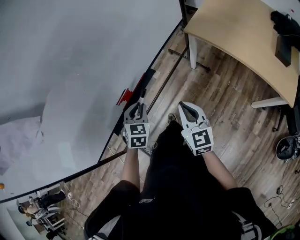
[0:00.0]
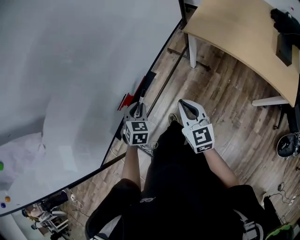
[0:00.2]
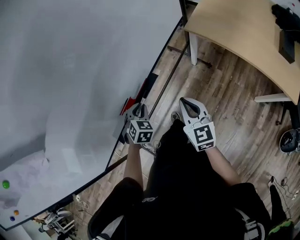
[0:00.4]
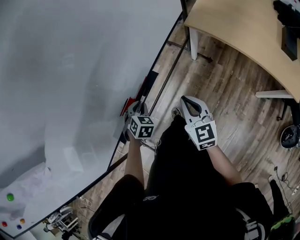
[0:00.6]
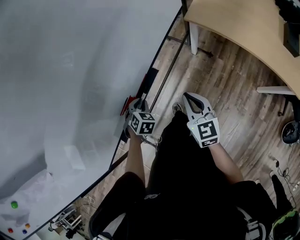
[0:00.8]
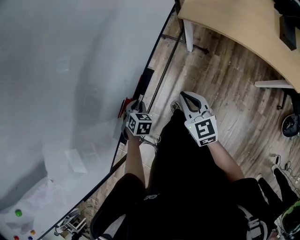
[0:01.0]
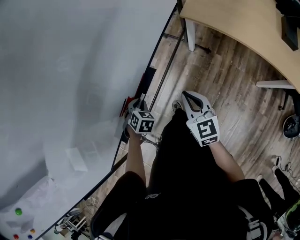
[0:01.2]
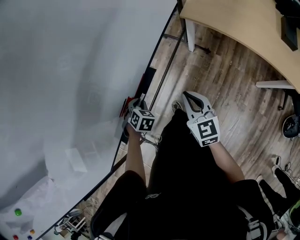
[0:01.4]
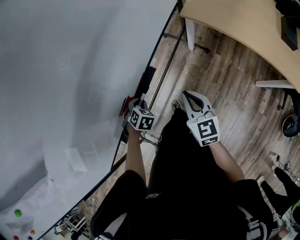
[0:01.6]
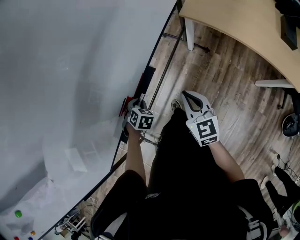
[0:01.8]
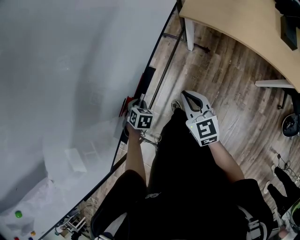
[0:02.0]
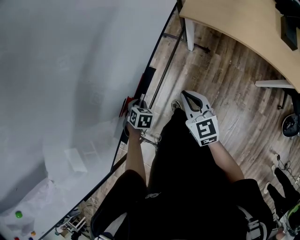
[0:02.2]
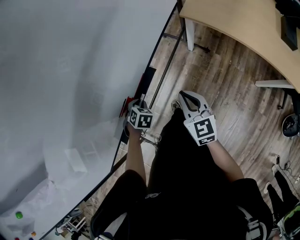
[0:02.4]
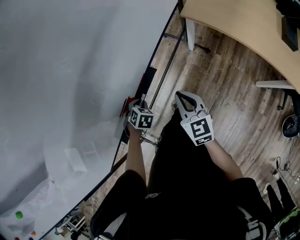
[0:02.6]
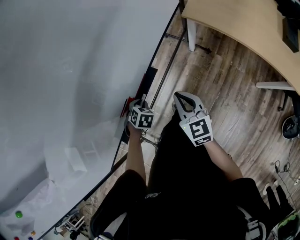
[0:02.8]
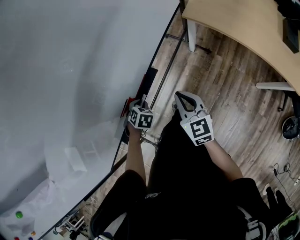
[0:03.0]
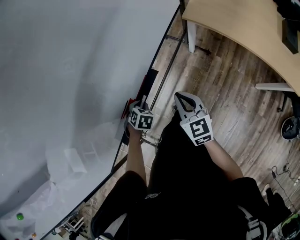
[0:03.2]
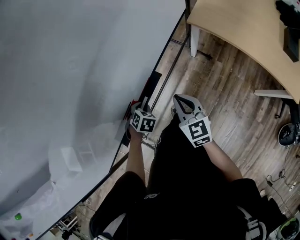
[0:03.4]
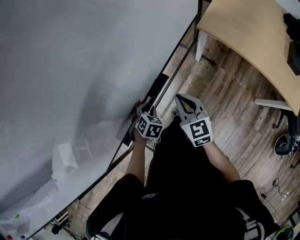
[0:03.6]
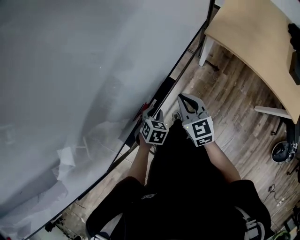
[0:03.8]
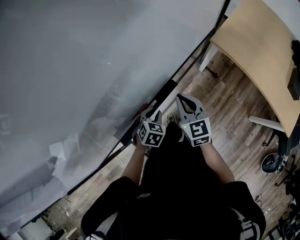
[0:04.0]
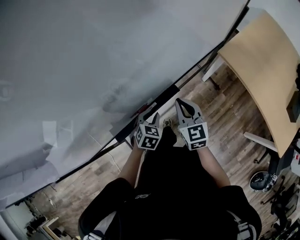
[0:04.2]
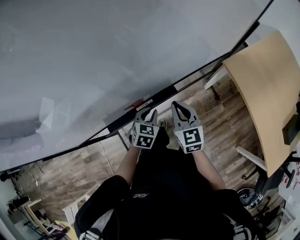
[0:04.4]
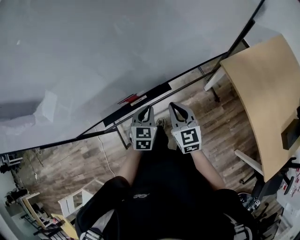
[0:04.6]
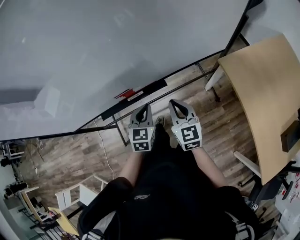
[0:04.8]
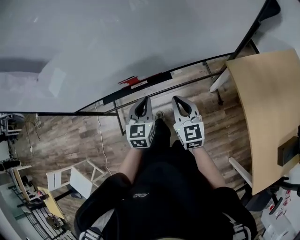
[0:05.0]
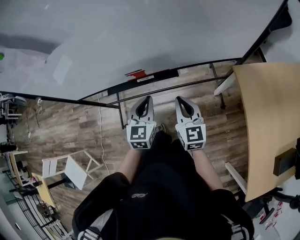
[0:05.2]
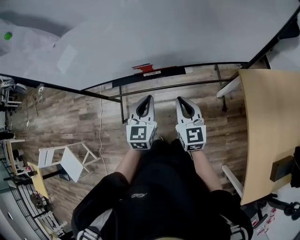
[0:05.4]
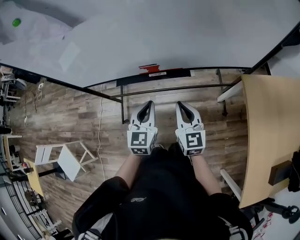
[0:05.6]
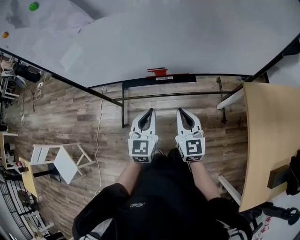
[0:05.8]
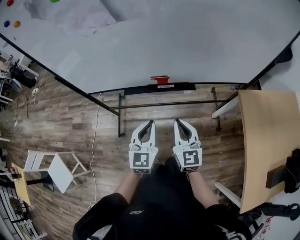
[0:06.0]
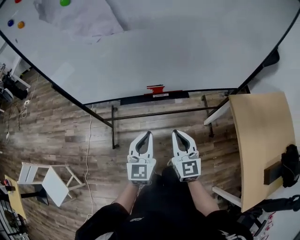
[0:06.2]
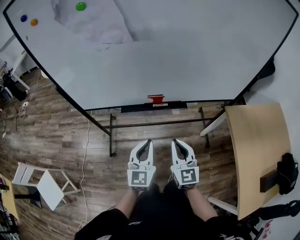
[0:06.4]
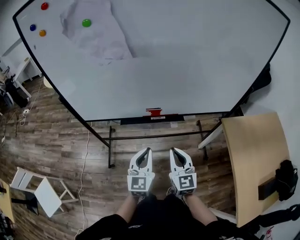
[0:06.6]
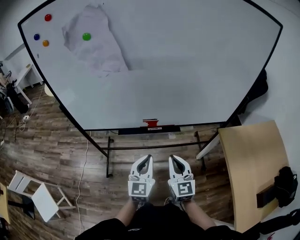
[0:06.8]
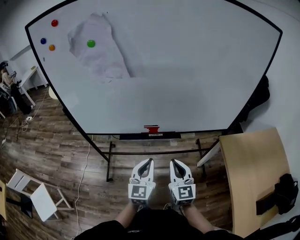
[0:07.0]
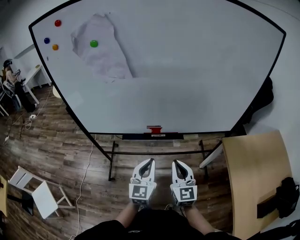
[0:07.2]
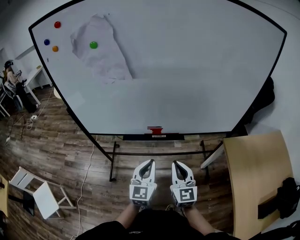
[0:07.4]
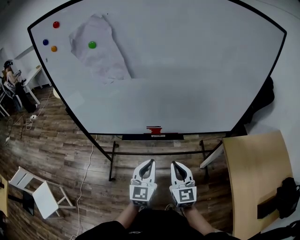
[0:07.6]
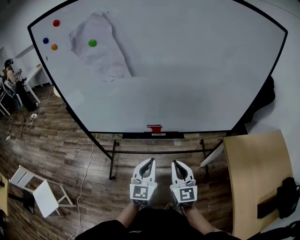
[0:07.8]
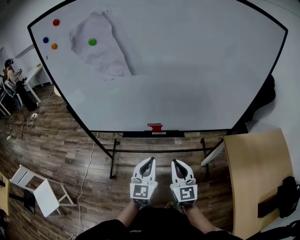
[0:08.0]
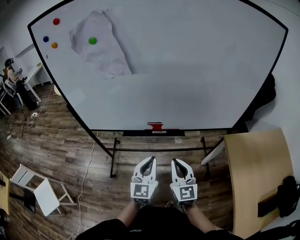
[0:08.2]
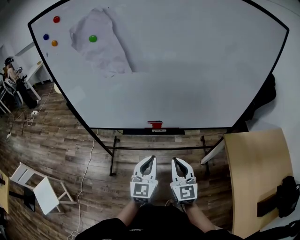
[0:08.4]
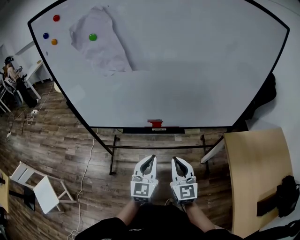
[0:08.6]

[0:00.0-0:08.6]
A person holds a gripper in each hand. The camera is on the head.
0:00.0 to 0:01.4: The right gripper goes roughly 10 cm forward and downward. Meanwhile the left gripper shifts approximately 15 cm downward and forward, and turns by about 30 degrees.
0:01.4 to 0:02.8: The grippers stay close to where they were, moving slightly.
0:02.8 to 0:04.4: The left gripper heads upward, covering roughly 10 cm, and turns by about 40 degrees. The right gripper is displaced forward and to the left by about 10 cm, and turns by approximately 20 degrees.
0:04.4 to 0:05.8: The left gripper shifts by some 25 cm, and angles its fingers upward, by some 30 degrees; the right gripper shifts by some 15 cm, and turns by some 20 degrees.
0:05.8 to 0:07.2: Both grippers move upward and backward, about 10 cm.
0:07.2 to 0:08.6: The grippers move only a little.

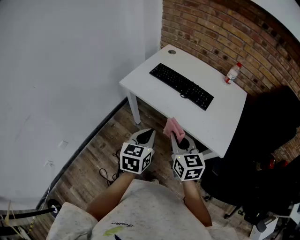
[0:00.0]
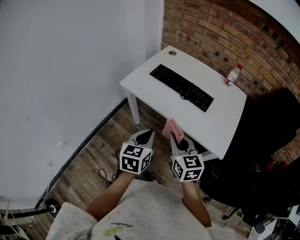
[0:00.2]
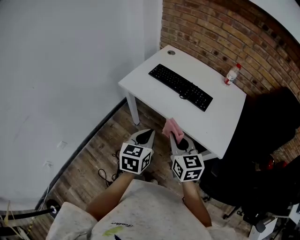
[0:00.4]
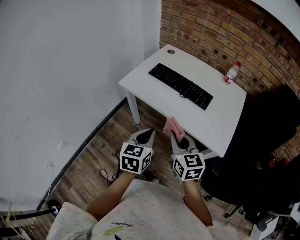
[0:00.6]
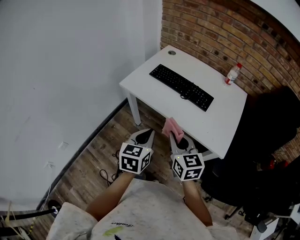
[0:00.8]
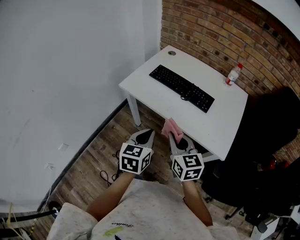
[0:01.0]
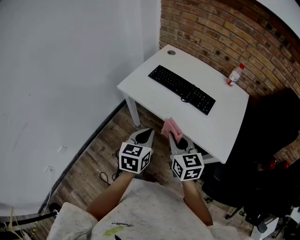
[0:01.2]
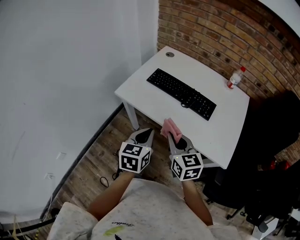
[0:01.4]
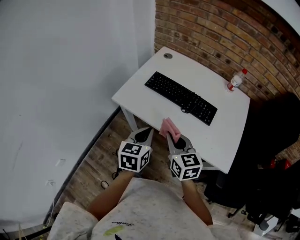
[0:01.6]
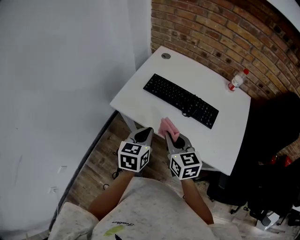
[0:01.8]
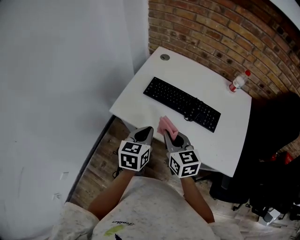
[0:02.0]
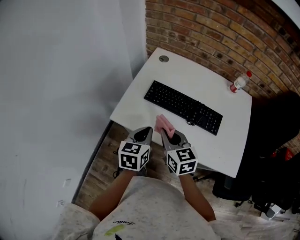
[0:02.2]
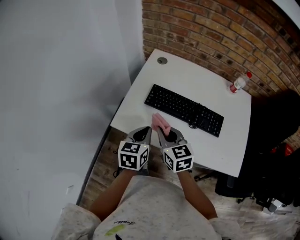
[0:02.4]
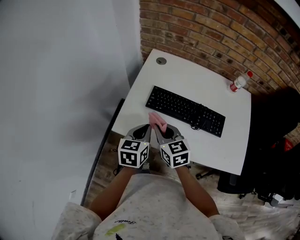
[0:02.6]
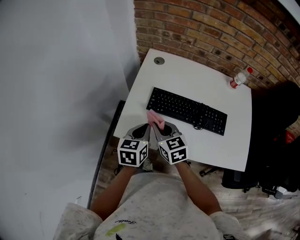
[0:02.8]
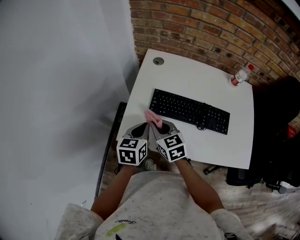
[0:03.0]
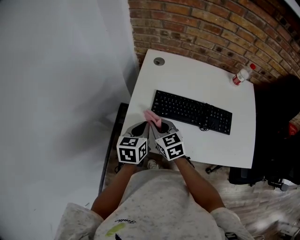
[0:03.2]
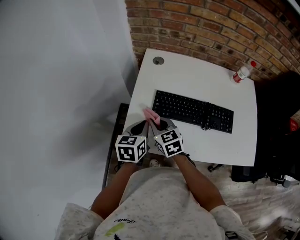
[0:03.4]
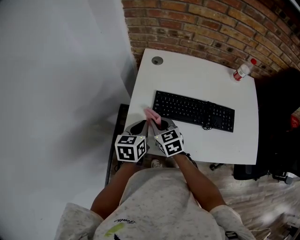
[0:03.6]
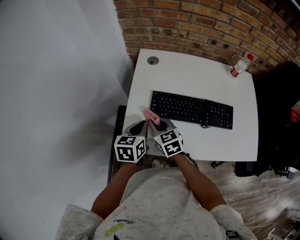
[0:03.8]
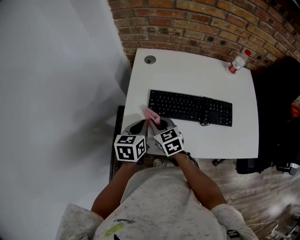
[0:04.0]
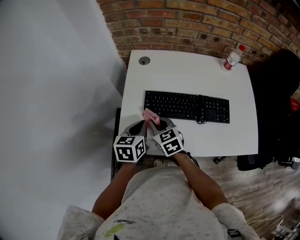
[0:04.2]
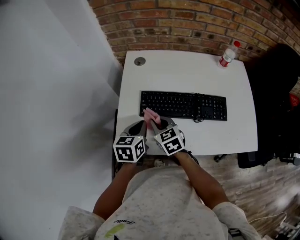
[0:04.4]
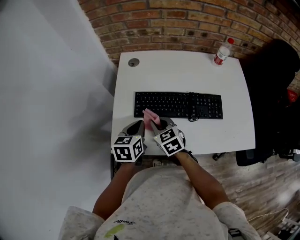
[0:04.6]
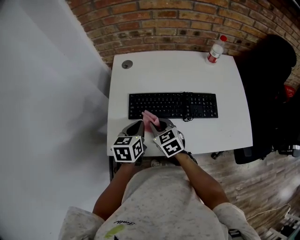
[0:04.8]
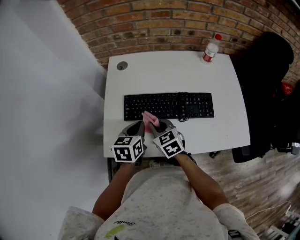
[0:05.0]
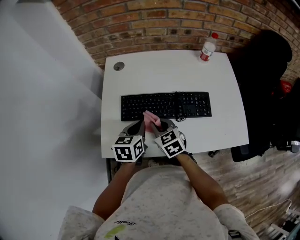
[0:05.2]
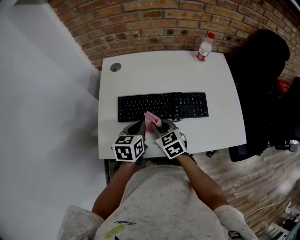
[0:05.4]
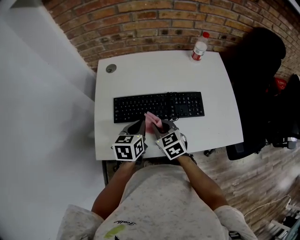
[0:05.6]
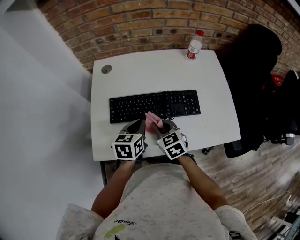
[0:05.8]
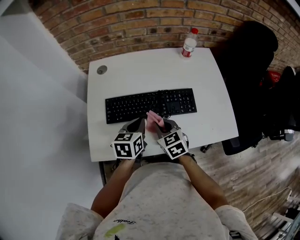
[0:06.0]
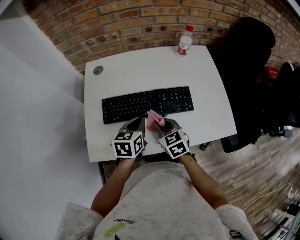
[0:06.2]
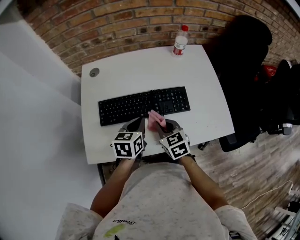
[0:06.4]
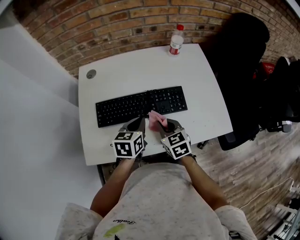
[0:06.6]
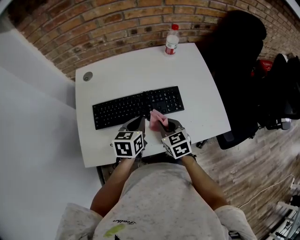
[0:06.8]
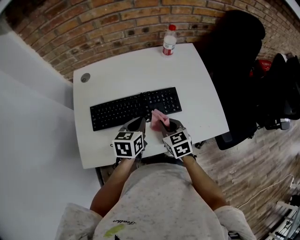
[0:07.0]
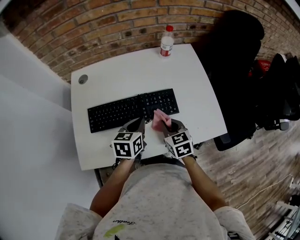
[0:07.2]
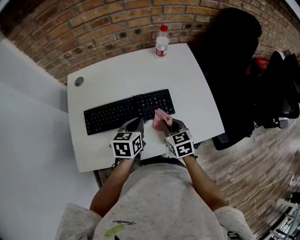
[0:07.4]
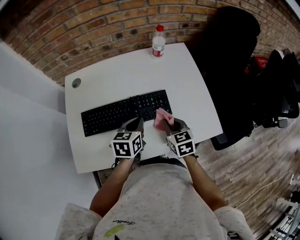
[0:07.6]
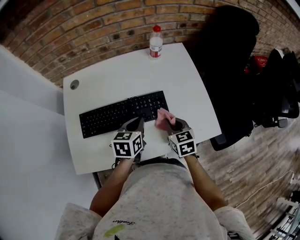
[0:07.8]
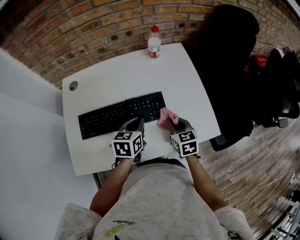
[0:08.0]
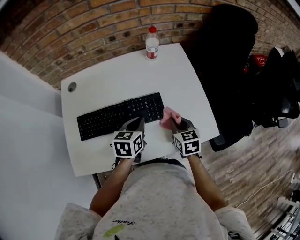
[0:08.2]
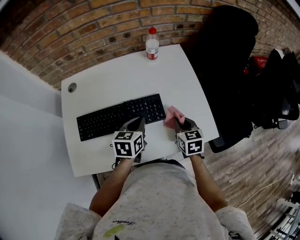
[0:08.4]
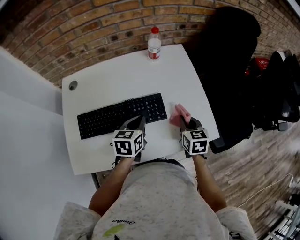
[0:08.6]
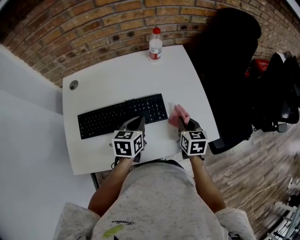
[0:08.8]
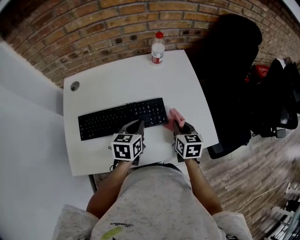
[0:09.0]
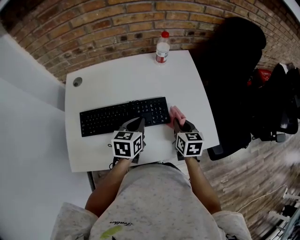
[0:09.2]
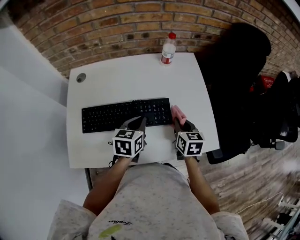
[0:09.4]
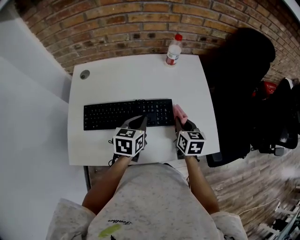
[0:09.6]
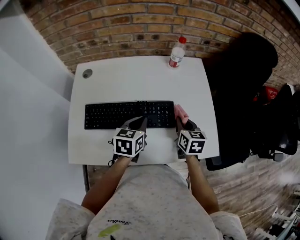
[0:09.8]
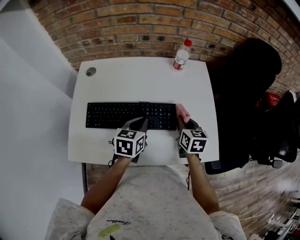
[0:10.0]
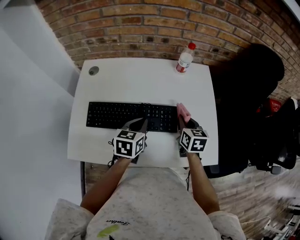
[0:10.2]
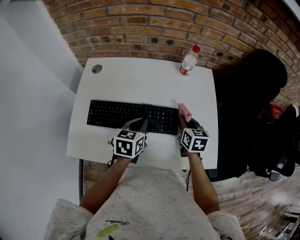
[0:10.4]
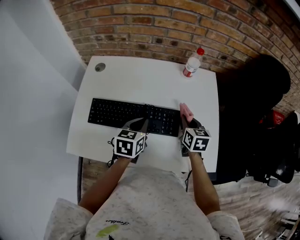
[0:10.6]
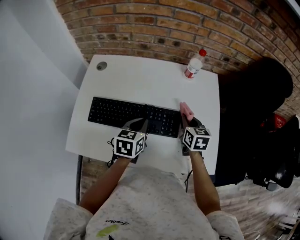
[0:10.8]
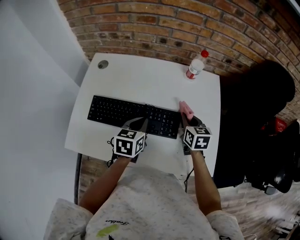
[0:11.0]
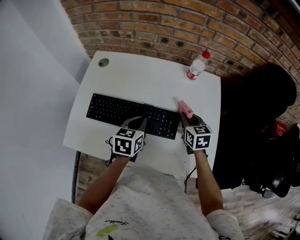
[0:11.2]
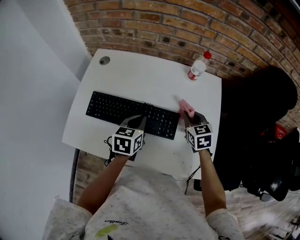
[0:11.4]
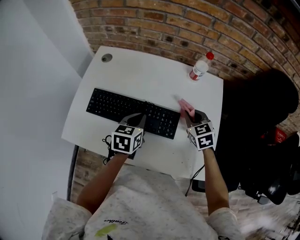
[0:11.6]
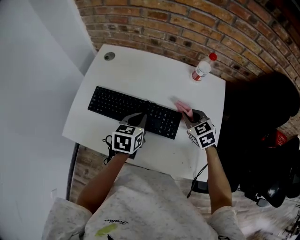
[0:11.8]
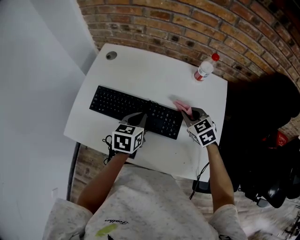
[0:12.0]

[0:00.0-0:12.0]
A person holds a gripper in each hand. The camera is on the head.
0:00.0 to 0:01.6: Both grippers move forward, about 15 cm.
0:01.6 to 0:03.0: Both grippers travel together forward and to the left, about 30 cm.
0:03.0 to 0:04.4: The right gripper shifts by roughly 5 cm.
0:04.4 to 0:06.0: The grippers both shift to the right by approximately 15 cm.
0:06.0 to 0:07.6: The two grippers go approximately 15 cm to the right.
0:07.6 to 0:09.0: The right gripper goes about 5 cm to the right.
0:09.0 to 0:10.4: The right gripper is displaced forward by approximately 10 cm.
0:10.4 to 0:12.0: The right gripper shifts by about 5 cm, and rolls counterclockwise, seen from behind, by about 40 degrees.

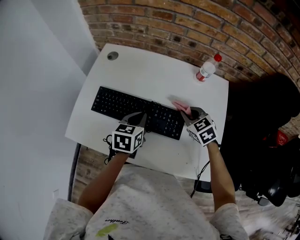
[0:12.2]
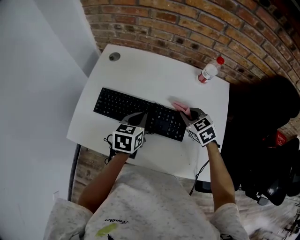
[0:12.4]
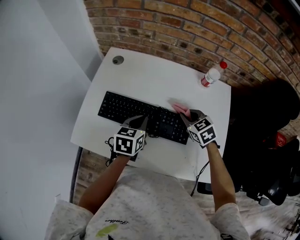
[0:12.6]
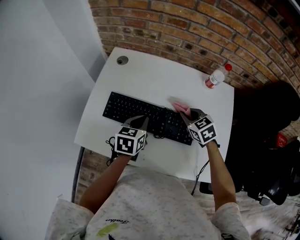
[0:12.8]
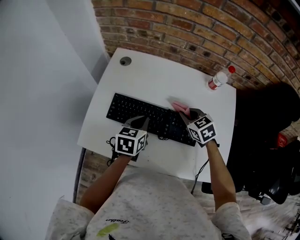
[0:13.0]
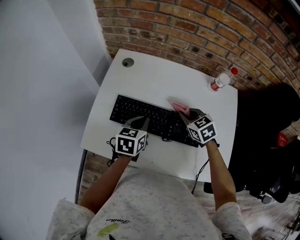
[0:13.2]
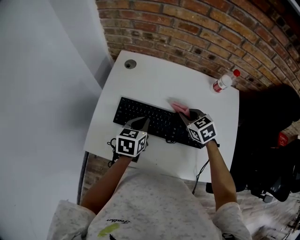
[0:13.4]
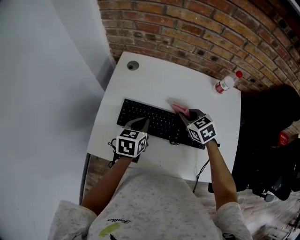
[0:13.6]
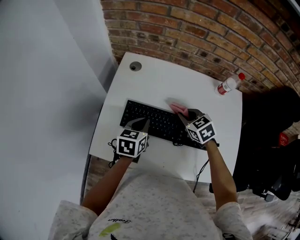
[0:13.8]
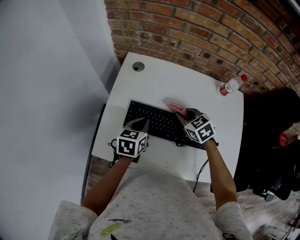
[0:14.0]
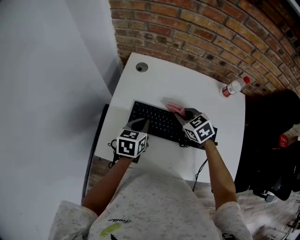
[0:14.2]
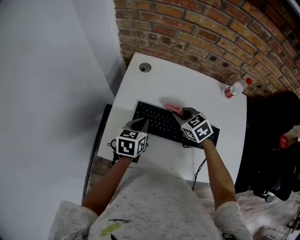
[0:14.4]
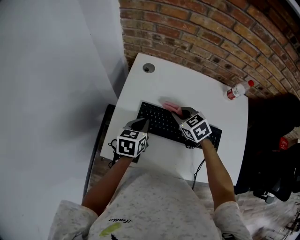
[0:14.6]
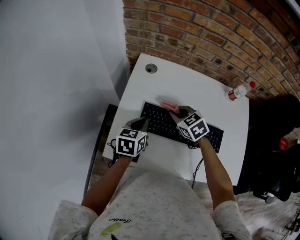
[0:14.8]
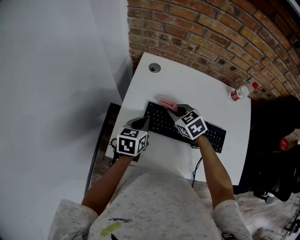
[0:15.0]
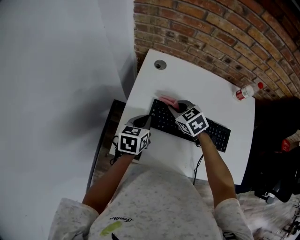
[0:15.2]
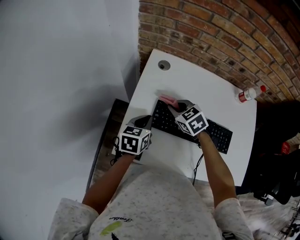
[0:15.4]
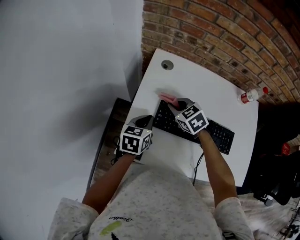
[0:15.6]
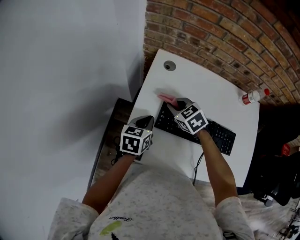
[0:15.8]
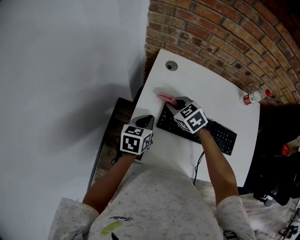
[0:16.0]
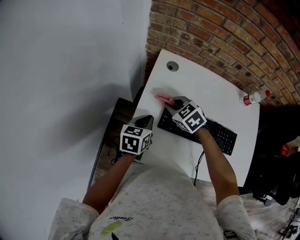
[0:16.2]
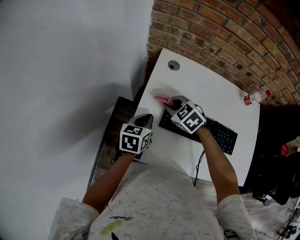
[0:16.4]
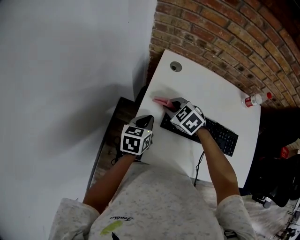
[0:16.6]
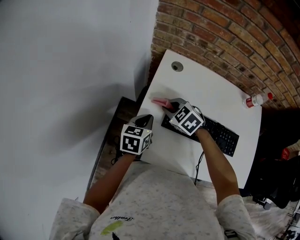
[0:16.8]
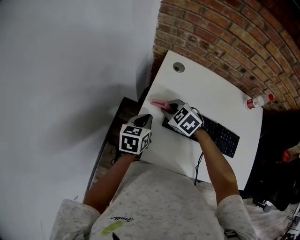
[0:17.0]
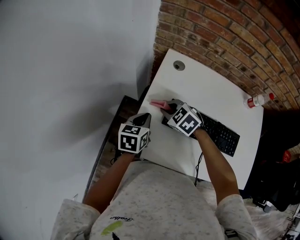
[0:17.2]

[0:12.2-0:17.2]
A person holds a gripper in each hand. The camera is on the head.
0:12.2 to 0:13.8: The two grippers go roughly 15 cm to the left.
0:13.8 to 0:15.6: The right gripper heads to the left, covering approximately 20 cm. The left gripper moves to the left, some 15 cm.
0:15.6 to 0:17.2: The grippers both shift to the left by roughly 5 cm.
